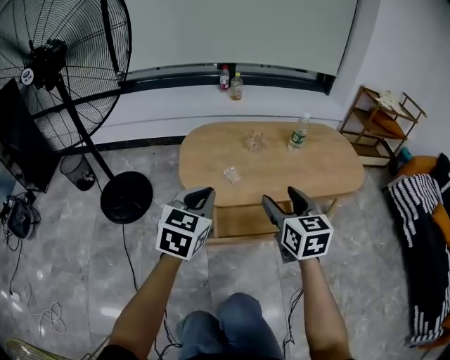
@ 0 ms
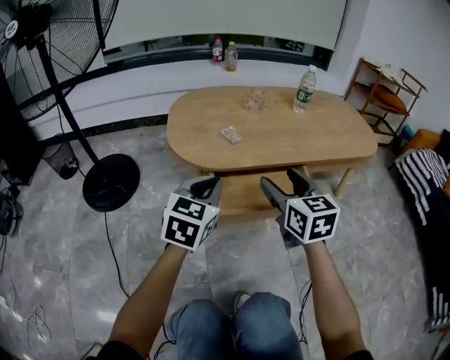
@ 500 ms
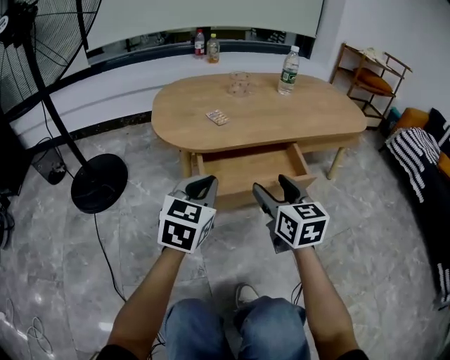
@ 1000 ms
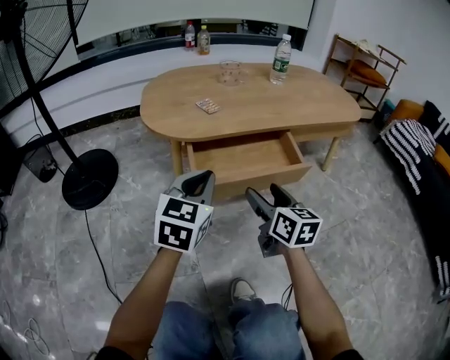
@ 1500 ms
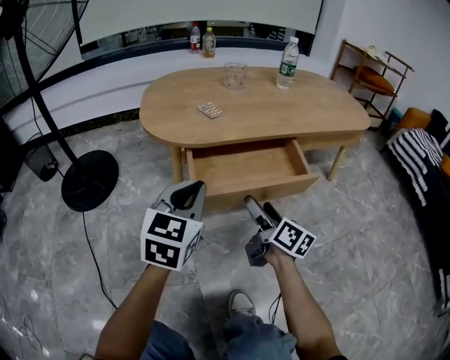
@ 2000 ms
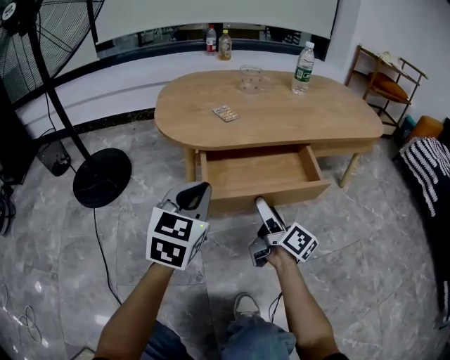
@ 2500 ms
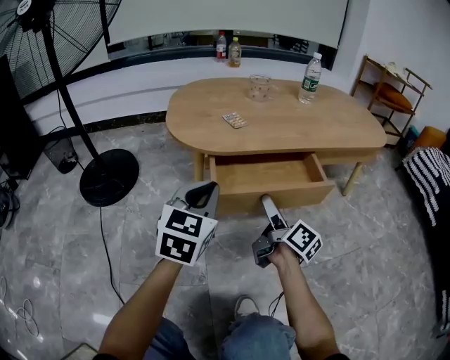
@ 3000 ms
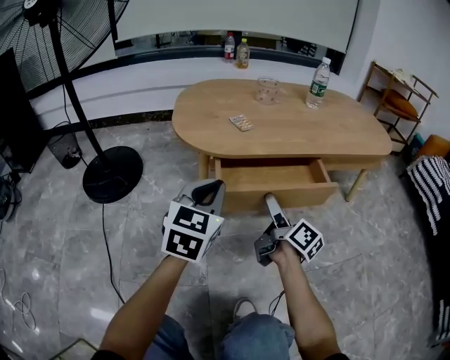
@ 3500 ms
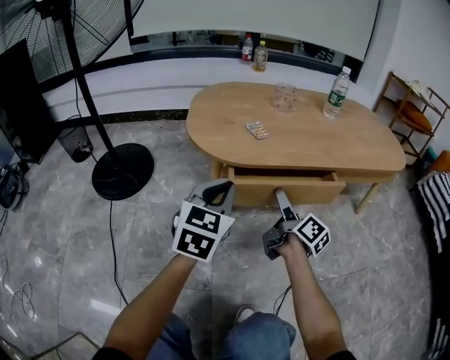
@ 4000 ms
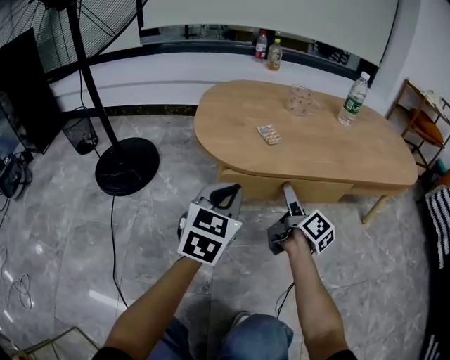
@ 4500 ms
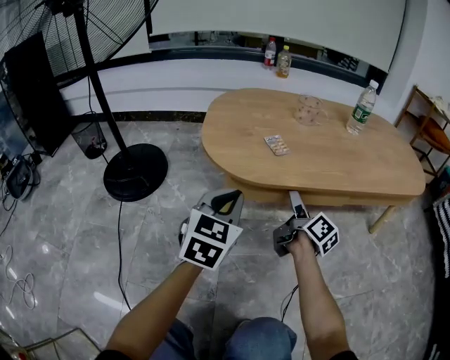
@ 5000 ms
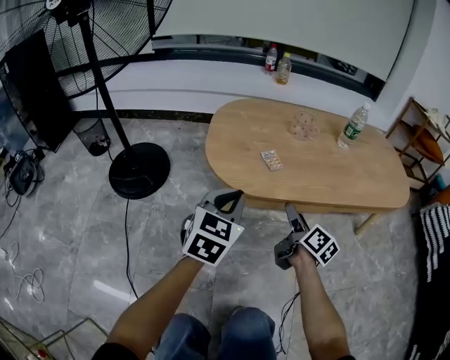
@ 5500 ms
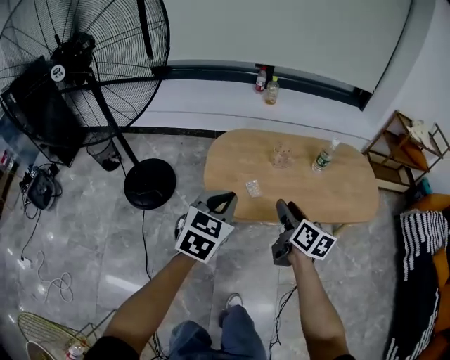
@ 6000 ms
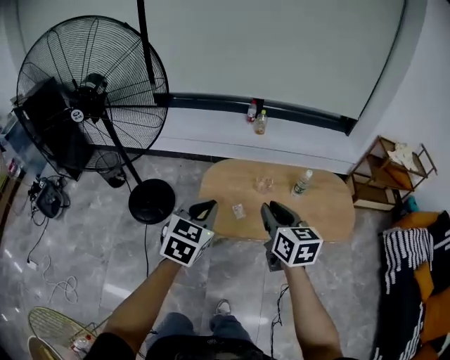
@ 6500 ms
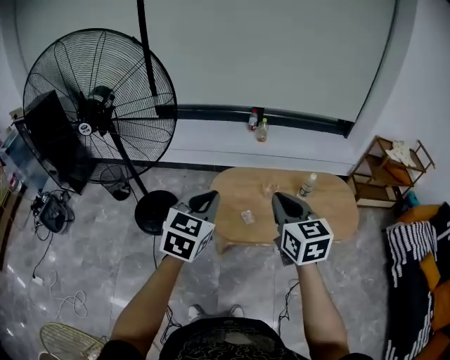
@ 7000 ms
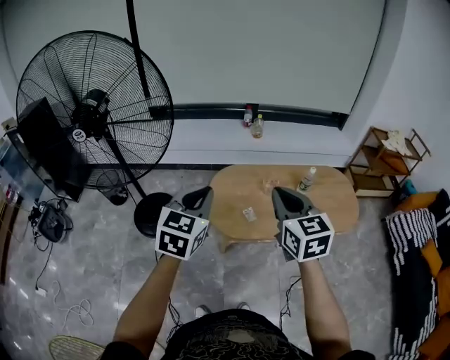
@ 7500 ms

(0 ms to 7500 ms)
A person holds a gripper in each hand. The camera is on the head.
0 ms - 2000 ms: The grippers both shift downward by roughly 30 cm. The right gripper rotates around the line of its fingers by approximately 50 degrees, clockwise from behind.
2000 ms - 4000 ms: The right gripper goes about 10 cm forward; the left gripper ends up about 5 cm from where it was.
4000 ms - 5500 ms: Both grippers travel together upward, about 5 cm.
5500 ms - 7500 ms: Both grippers travel together upward, some 50 cm. The right gripper rotates around the line of its fingers by roughly 50 degrees, counterclockwise from behind, and closes.

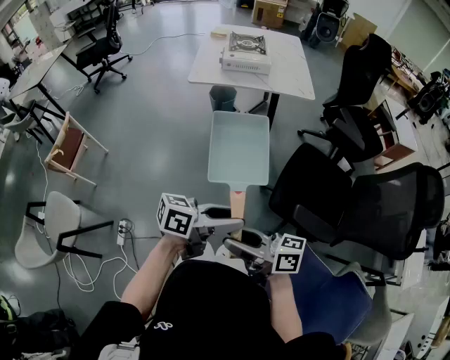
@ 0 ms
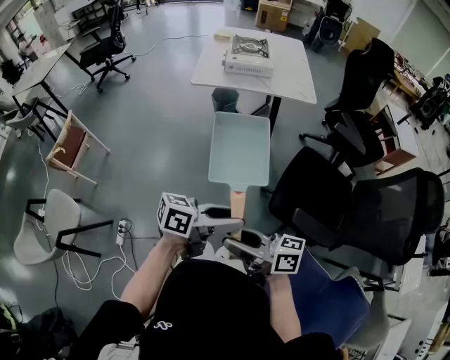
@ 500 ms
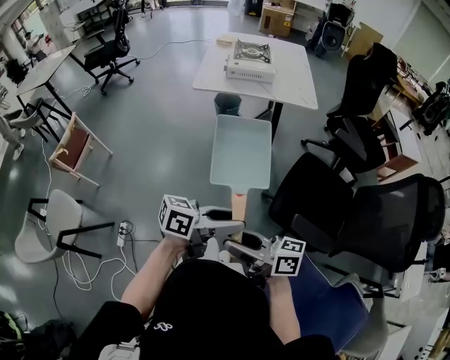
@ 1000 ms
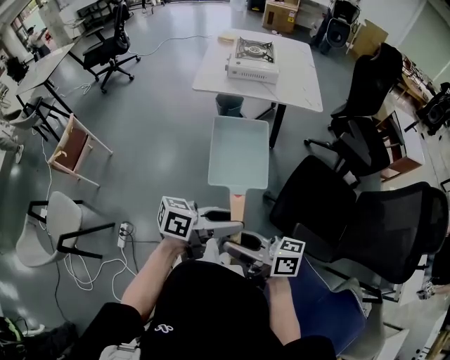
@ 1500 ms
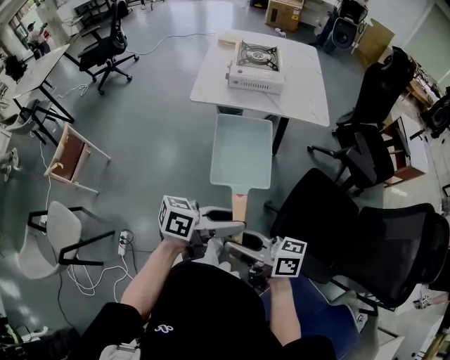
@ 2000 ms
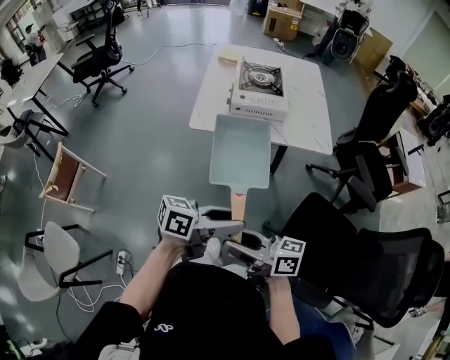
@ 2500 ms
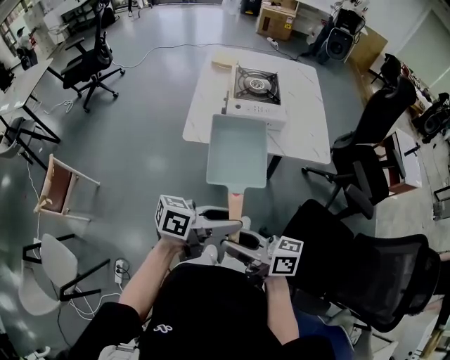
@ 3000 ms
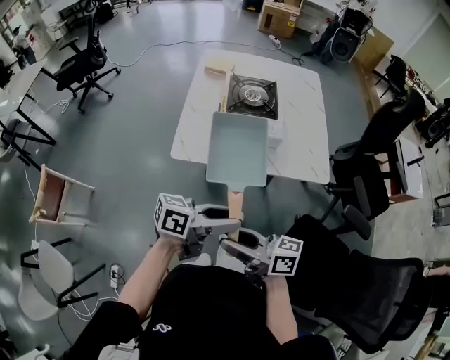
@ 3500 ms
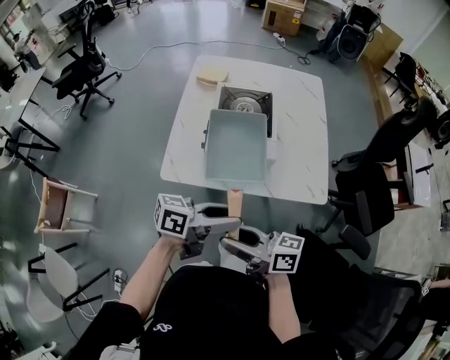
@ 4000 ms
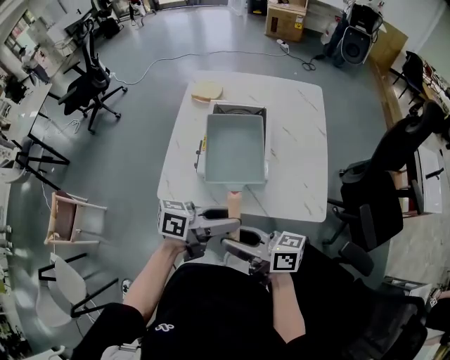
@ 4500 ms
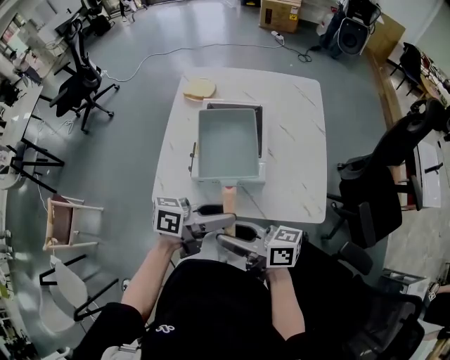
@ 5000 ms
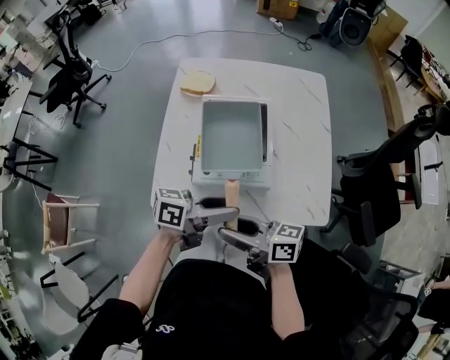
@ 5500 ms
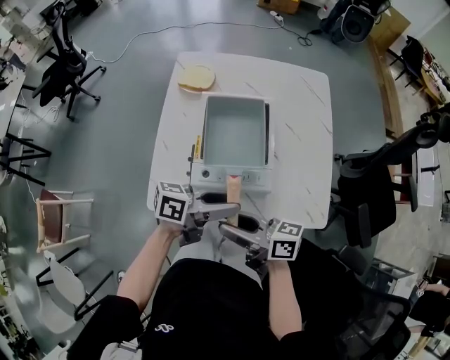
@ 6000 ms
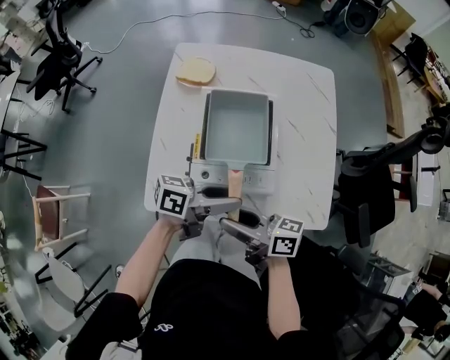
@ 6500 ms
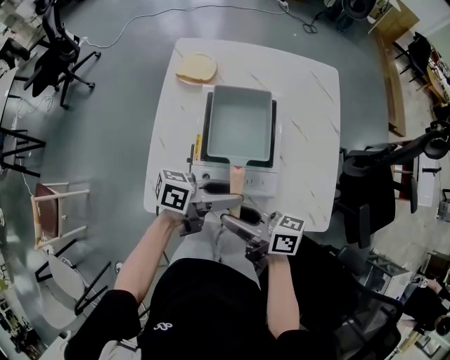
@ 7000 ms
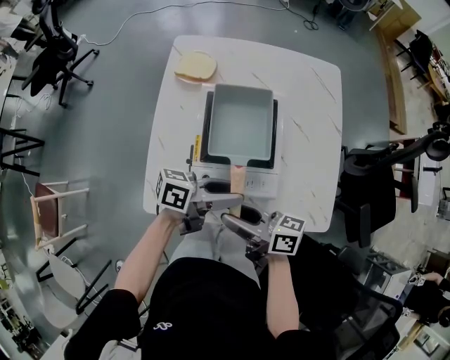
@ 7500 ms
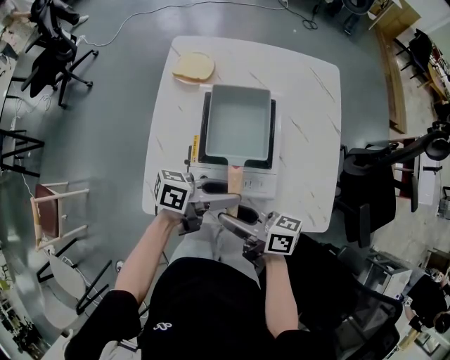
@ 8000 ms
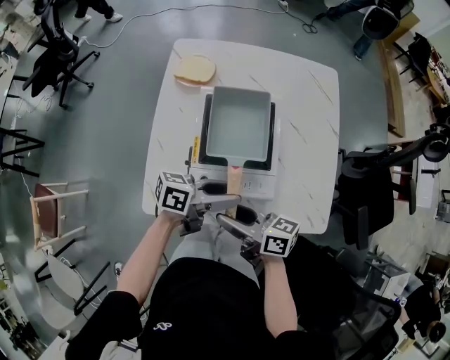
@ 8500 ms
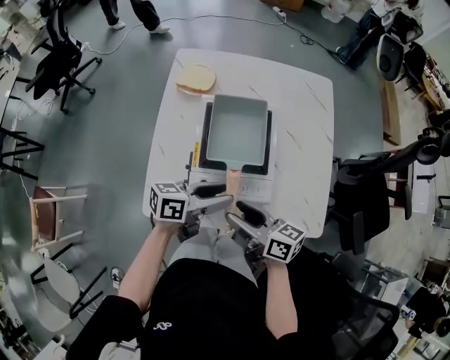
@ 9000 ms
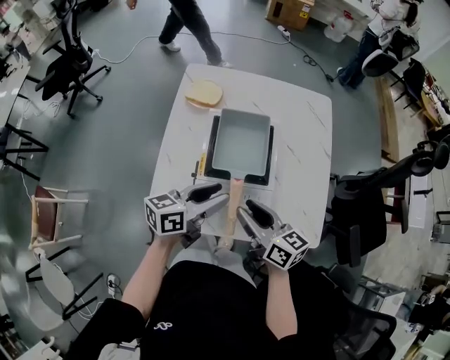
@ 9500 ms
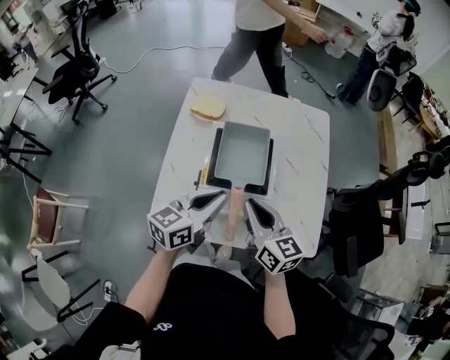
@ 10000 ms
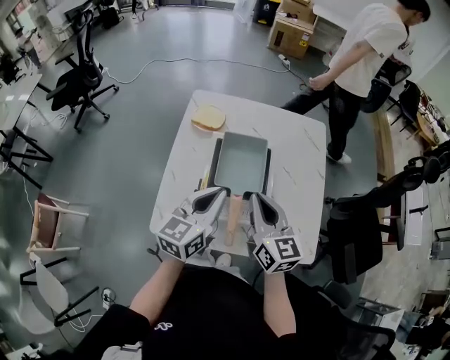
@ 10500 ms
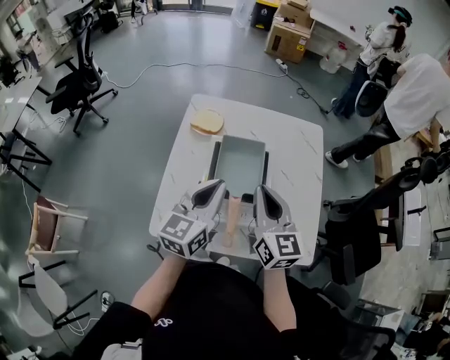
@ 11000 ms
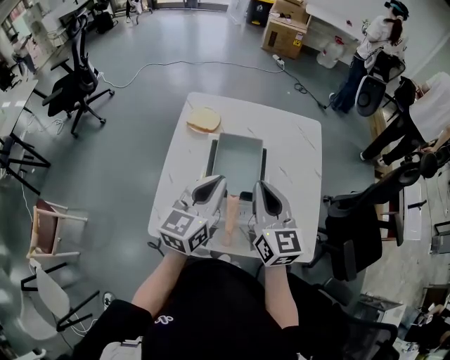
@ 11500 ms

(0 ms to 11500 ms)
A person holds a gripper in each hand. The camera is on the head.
0 ms - 2000 ms: The right gripper ends up approximately 15 cm from where it was. The left gripper shifts by roughly 15 cm.
2000 ms - 4000 ms: The pair of grippers is taken roughly 40 cm.
4000 ms - 6000 ms: The right gripper moves roughly 20 cm; the left gripper shifts by roughly 20 cm.
6000 ms - 7500 ms: The right gripper changes place by about 5 cm, while the left gripper moves approximately 5 cm.
7500 ms - 9500 ms: The left gripper shifts by approximately 5 cm, and turns by about 30 degrees. The right gripper moves about 5 cm, and changes its angle by roughly 30 degrees.
9500 ms - 11500 ms: The right gripper shifts about 15 cm upward and forward, changes its angle by about 40 degrees, and closes up, while the left gripper is displaced upward by approximately 10 cm, turns by roughly 40 degrees, and closes its fingers.

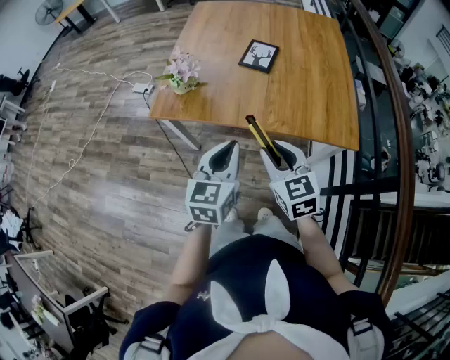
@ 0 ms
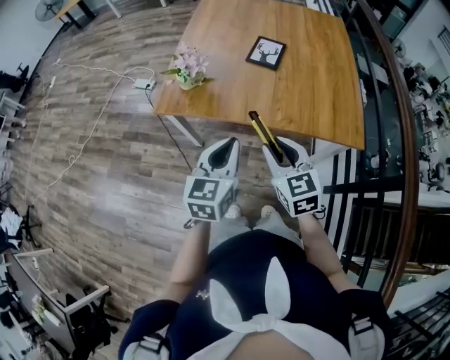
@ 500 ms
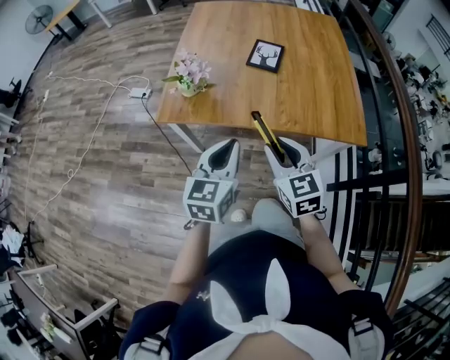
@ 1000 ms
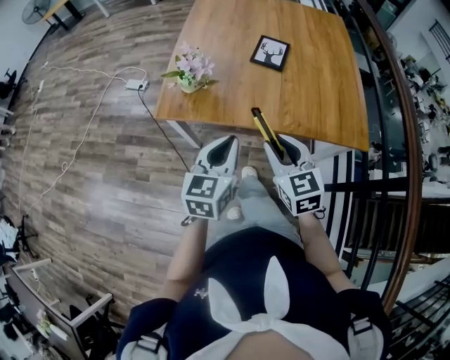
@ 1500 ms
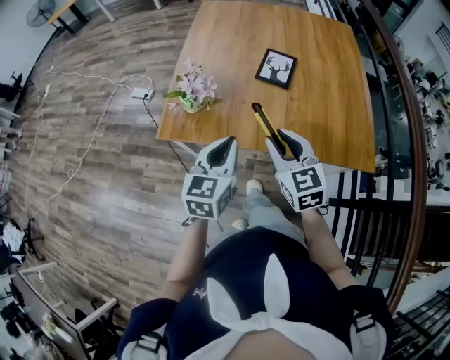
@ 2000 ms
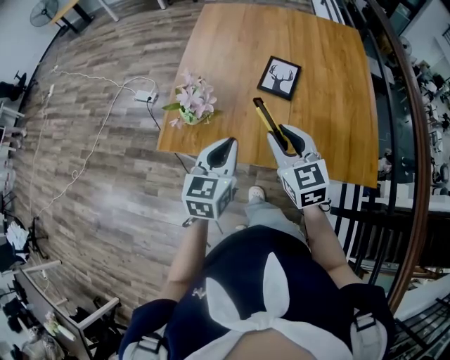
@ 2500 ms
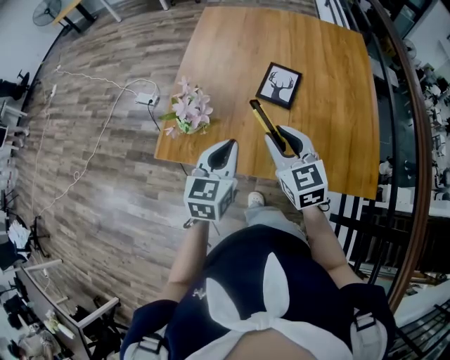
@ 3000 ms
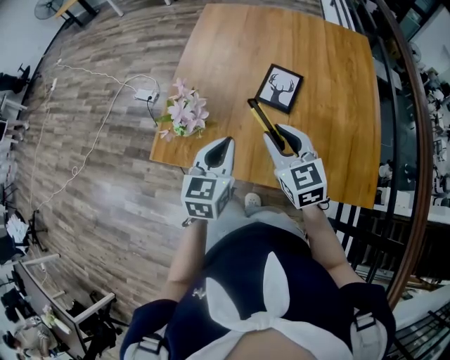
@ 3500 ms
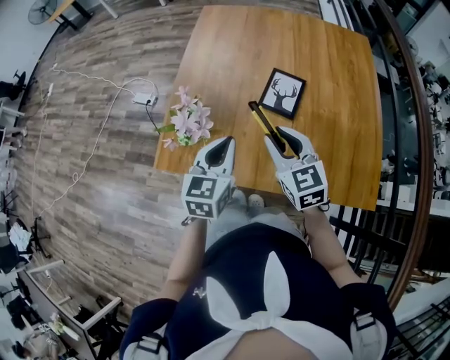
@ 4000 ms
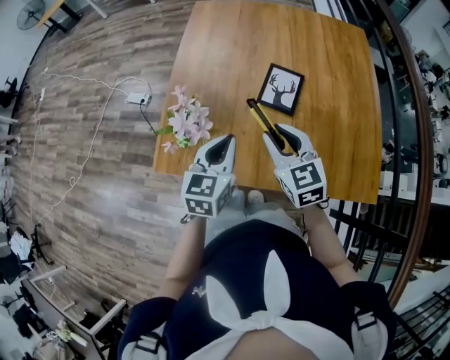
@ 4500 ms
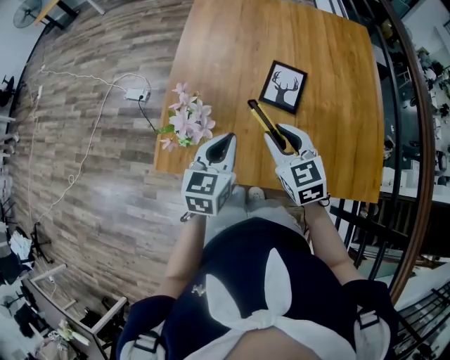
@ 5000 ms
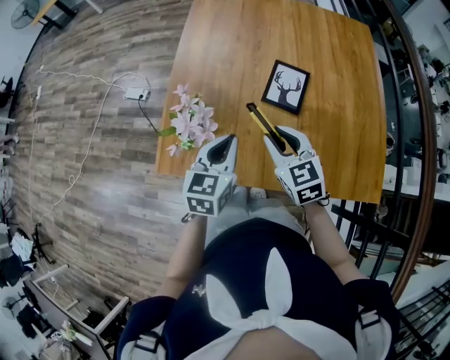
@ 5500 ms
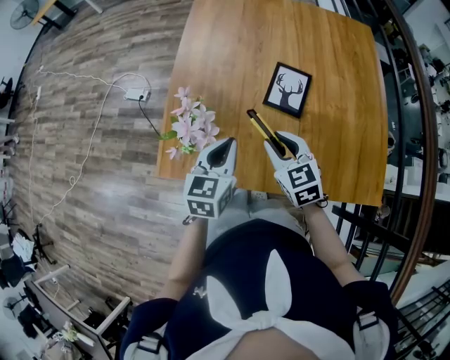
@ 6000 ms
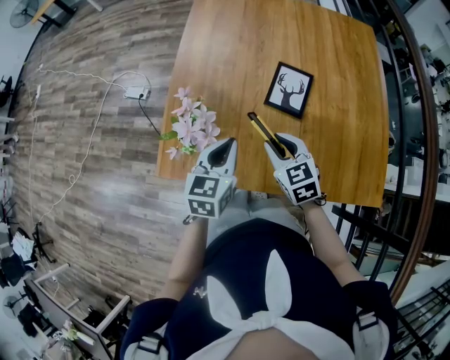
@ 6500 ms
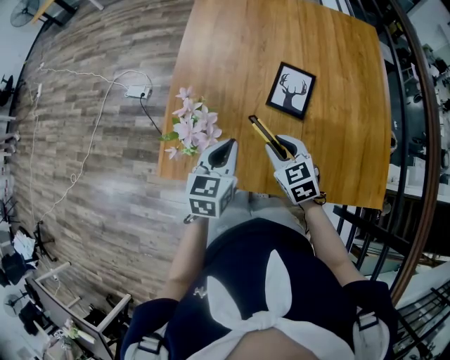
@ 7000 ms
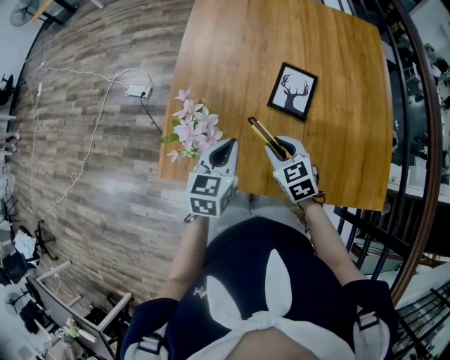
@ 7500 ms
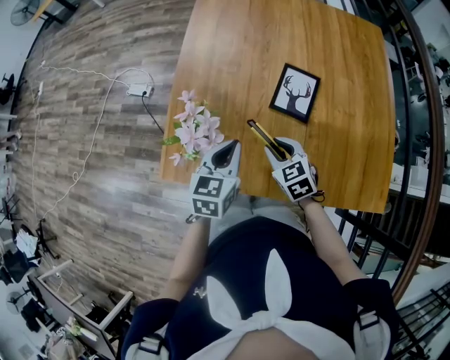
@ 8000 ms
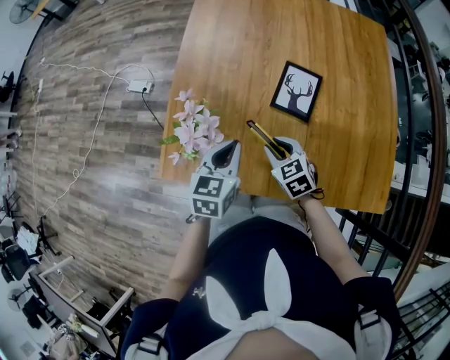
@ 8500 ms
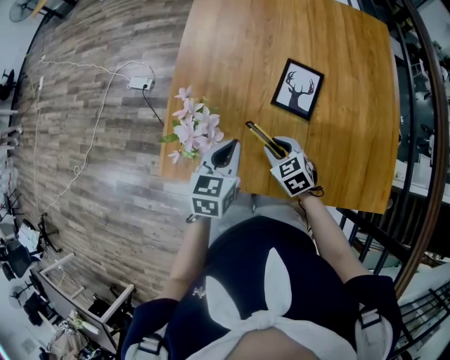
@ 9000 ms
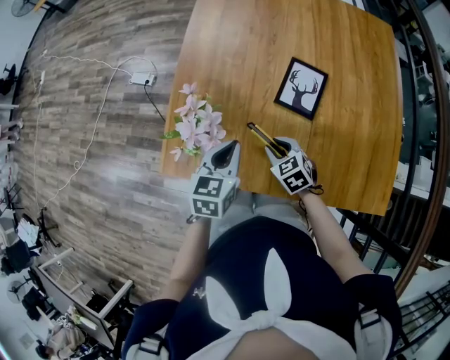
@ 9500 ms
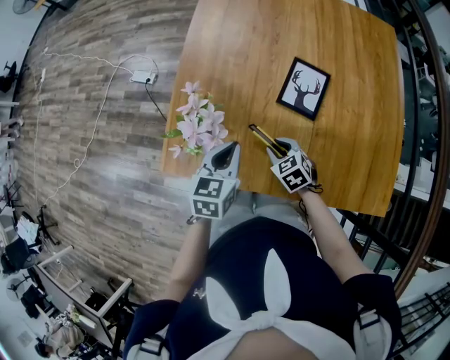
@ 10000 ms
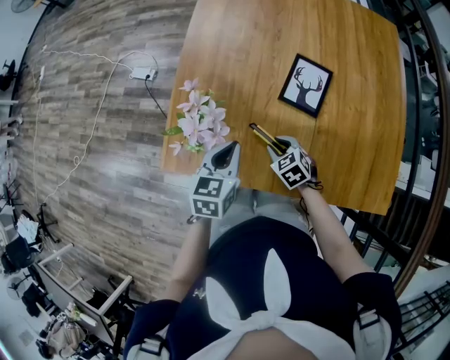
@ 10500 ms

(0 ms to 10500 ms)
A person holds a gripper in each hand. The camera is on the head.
0 ms - 2000 ms: The grippers both shift forward and to the left by some 15 cm.
2000 ms - 4000 ms: The grippers both shift forward by about 15 cm.
4000 ms - 6500 ms: The left gripper ends up roughly 5 cm from where it was; the right gripper is displaced downward by some 10 cm.
6500 ms - 8500 ms: The right gripper heads downward, covering some 5 cm.
8500 ms - 10500 ms: The right gripper shifts about 10 cm downward.
